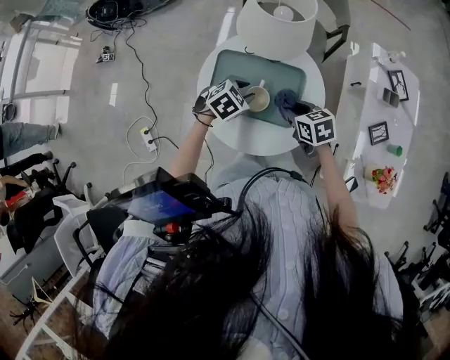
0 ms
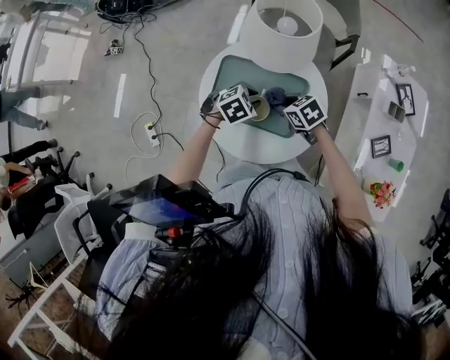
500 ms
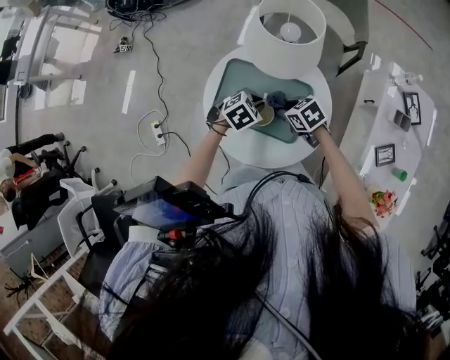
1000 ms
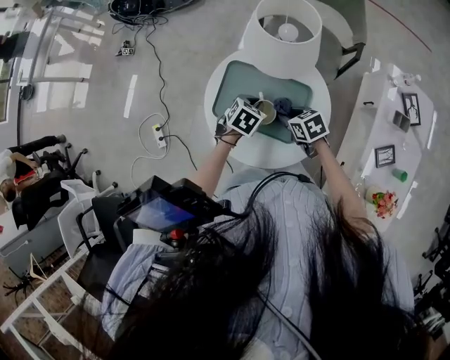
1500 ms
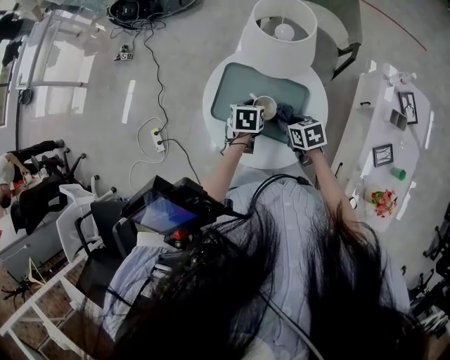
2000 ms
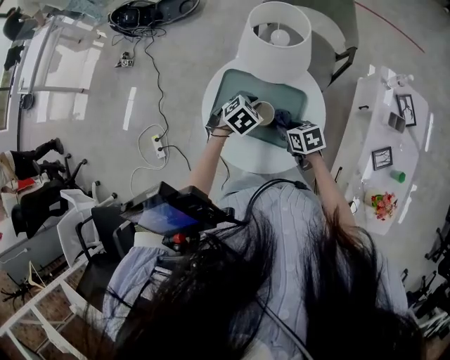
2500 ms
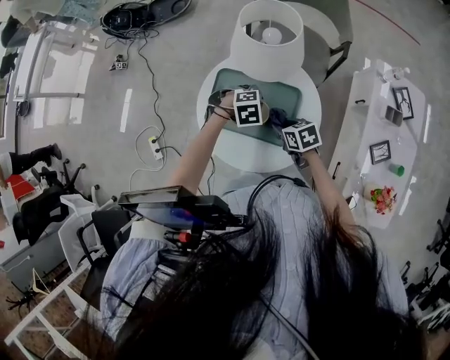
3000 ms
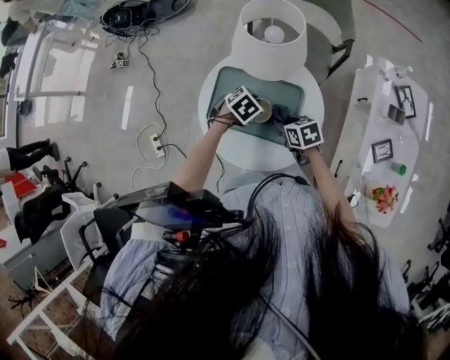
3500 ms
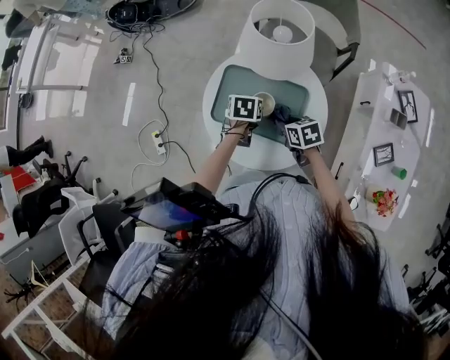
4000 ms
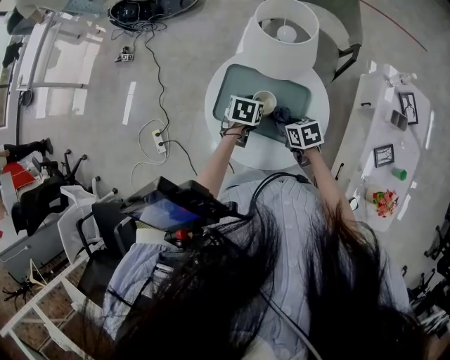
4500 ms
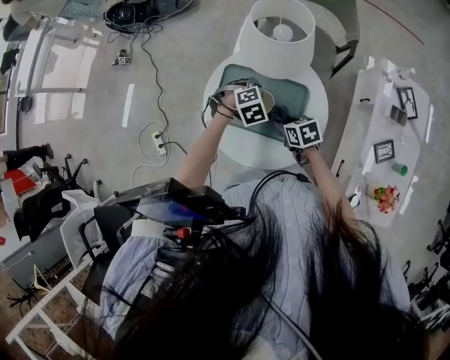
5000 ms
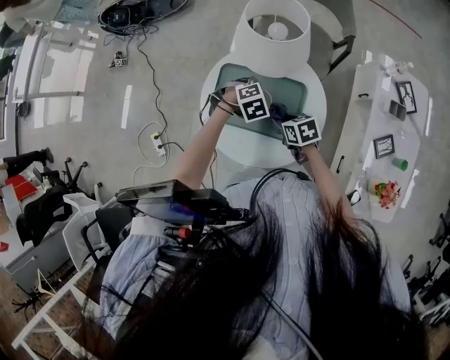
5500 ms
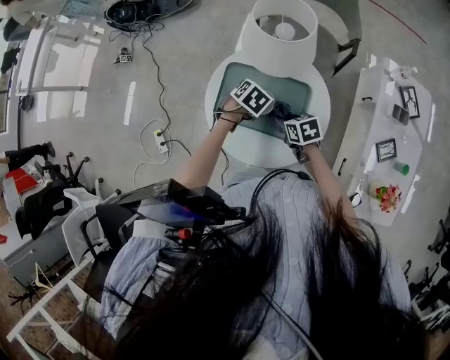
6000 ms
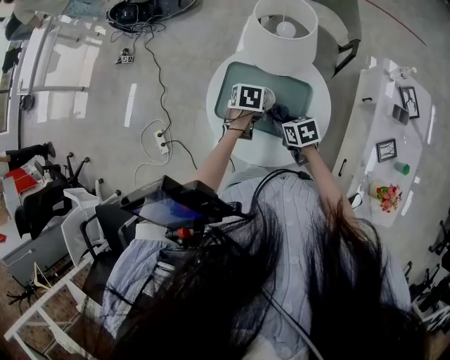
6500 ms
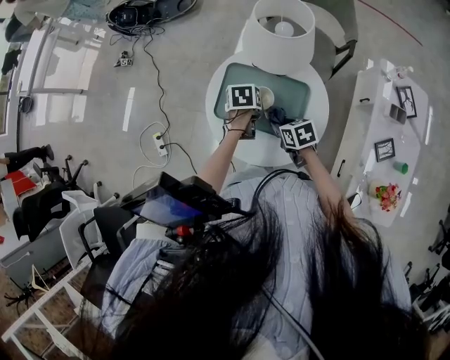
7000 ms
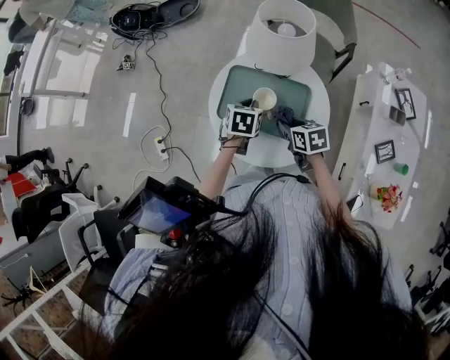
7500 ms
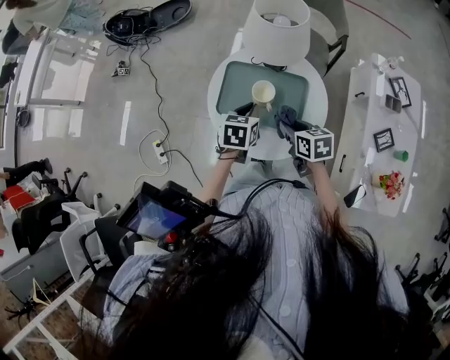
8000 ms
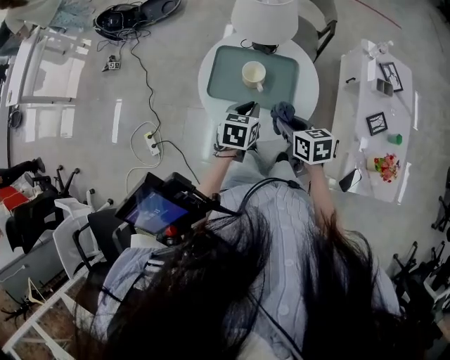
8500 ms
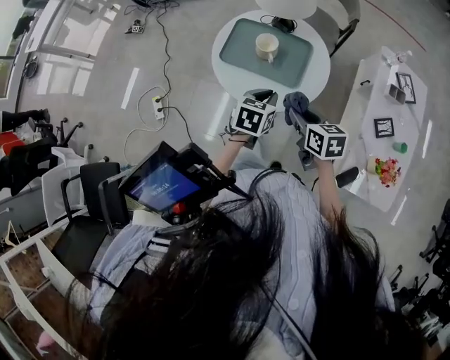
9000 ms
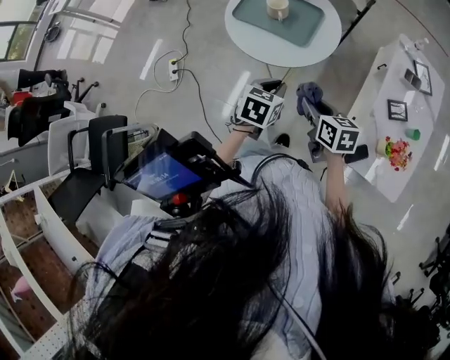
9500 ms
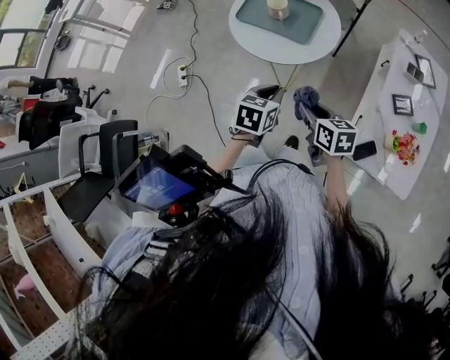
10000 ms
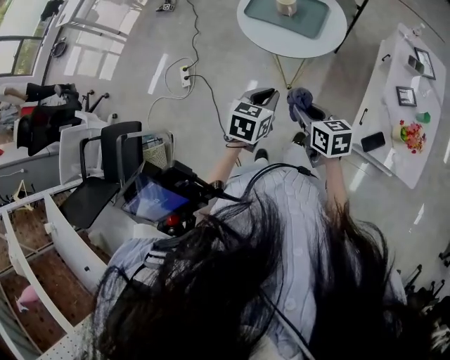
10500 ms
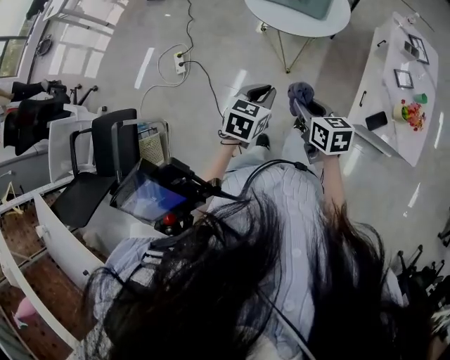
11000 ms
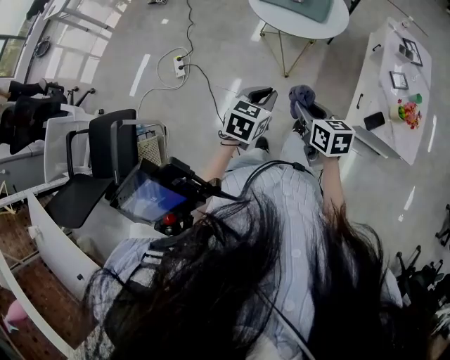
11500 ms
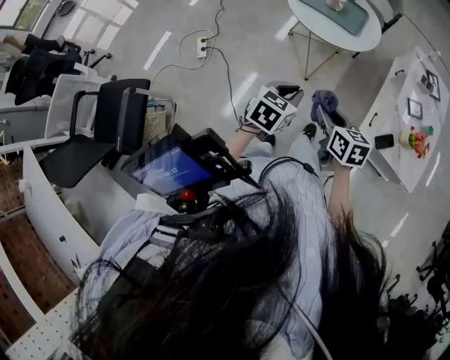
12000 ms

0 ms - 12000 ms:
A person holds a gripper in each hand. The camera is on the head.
0 ms - 2000 ms: The left gripper twists about 50 degrees counterclockwise, seen from behind.
4000 ms - 6000 ms: The left gripper turns by approximately 40 degrees.
6000 ms - 8000 ms: The left gripper heads upward, backward and to the left, covering some 15 cm, and swivels some 40 degrees. Meanwhile the right gripper shifts approximately 10 cm upward and backward.
8000 ms - 10000 ms: Both grippers travel together backward, approximately 30 cm.
10000 ms - 12000 ms: The grippers both shift backward and to the left by some 20 cm.

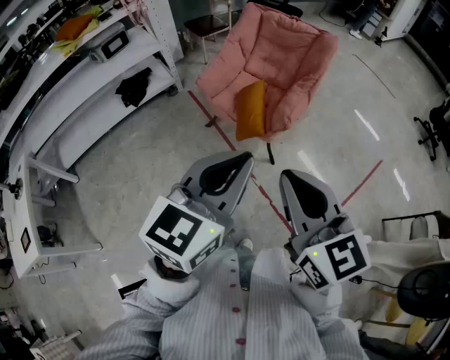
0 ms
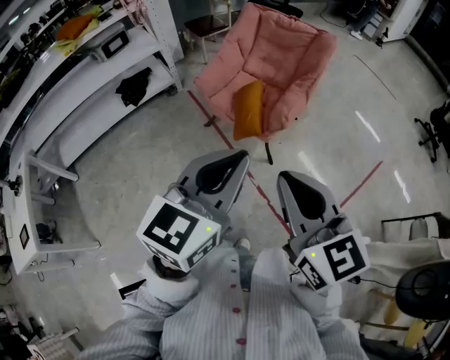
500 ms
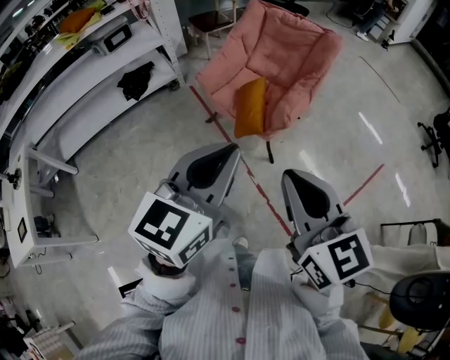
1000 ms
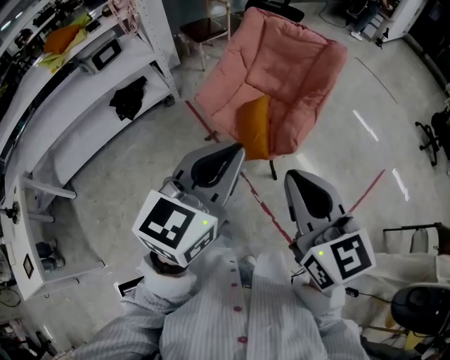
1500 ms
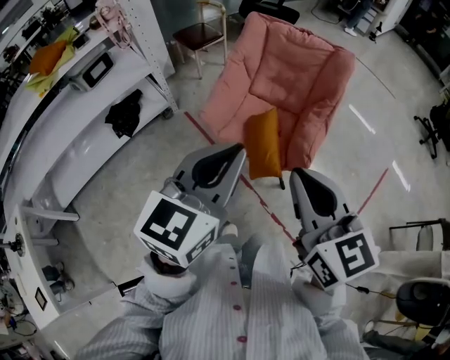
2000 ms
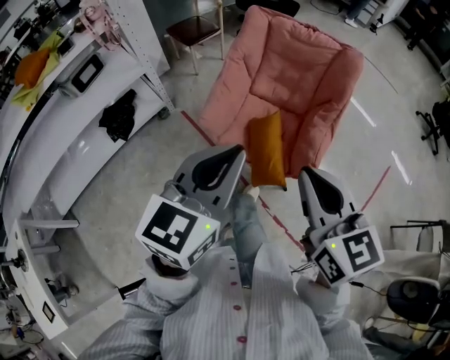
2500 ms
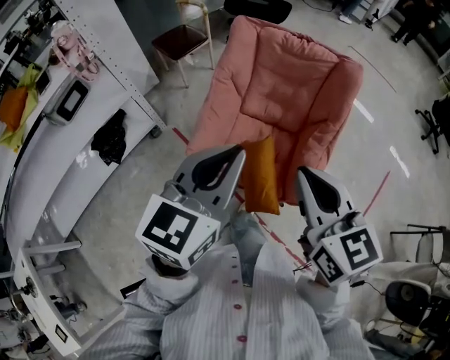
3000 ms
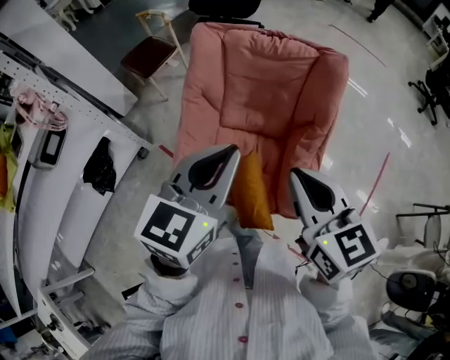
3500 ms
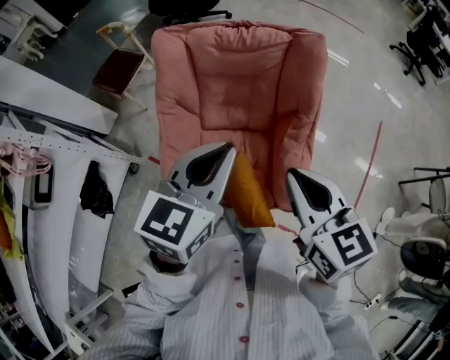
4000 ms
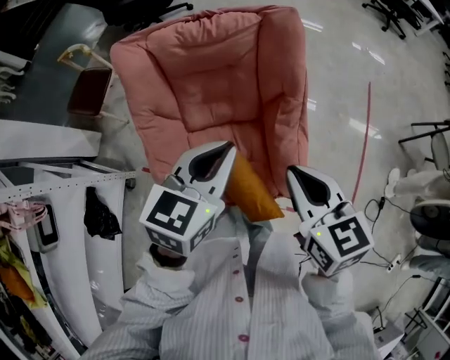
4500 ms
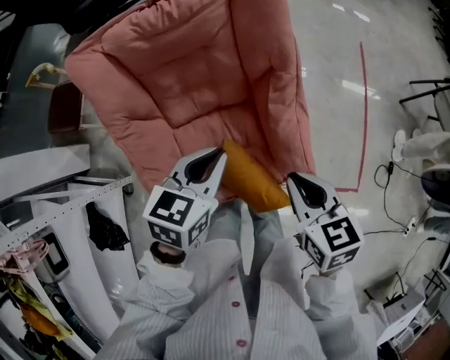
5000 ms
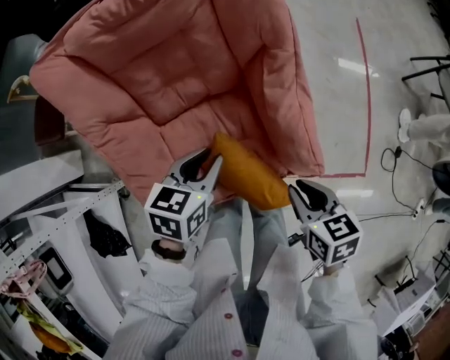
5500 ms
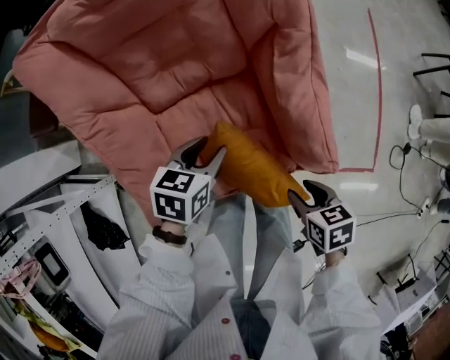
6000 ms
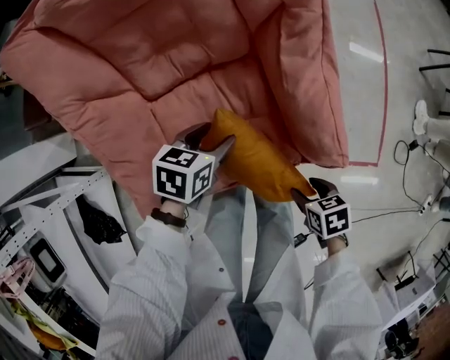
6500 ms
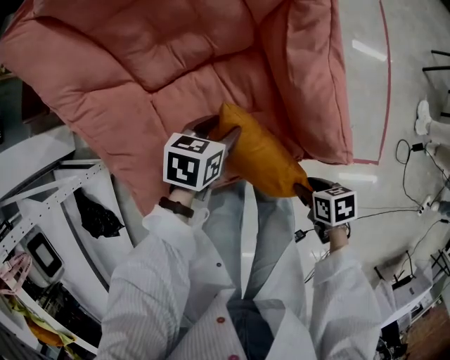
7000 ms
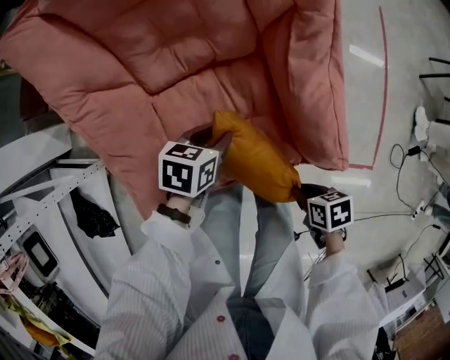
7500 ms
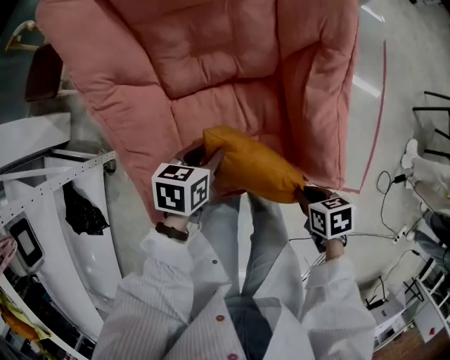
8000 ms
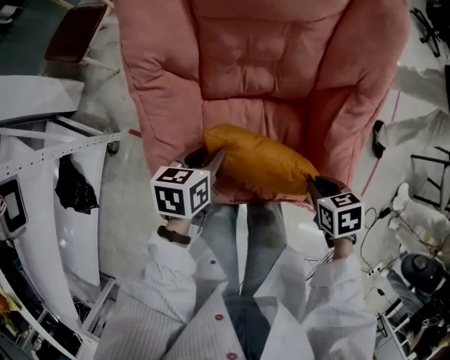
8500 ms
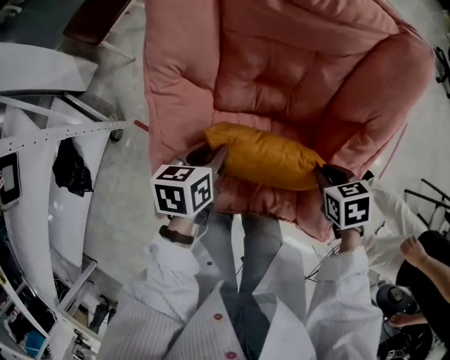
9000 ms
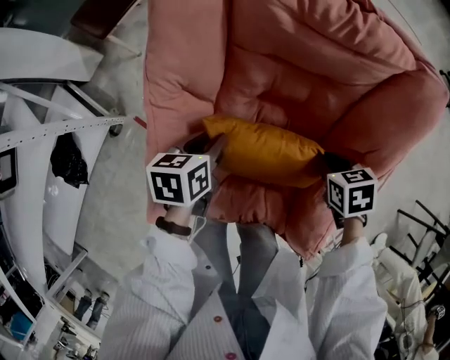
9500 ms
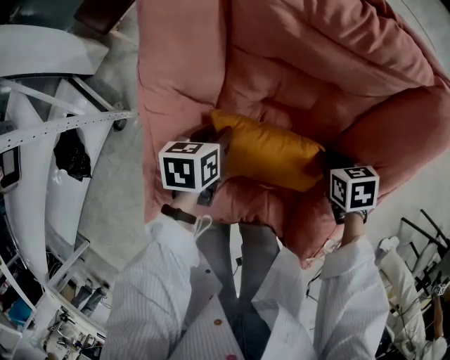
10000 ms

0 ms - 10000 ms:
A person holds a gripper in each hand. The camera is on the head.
0 ms - 2000 ms: The right gripper travels forward by roughly 25 cm, while the left gripper heads forward and to the left, covering approximately 30 cm.
2000 ms - 4000 ms: The two grippers go roughly 40 cm forward. The right gripper swivels some 20 degrees. Meanwhile the left gripper rotates approximately 20 degrees.
4000 ms - 6000 ms: The grippers both shift downward by about 40 cm. The right gripper tilts its fingers approximately 40 degrees downward, and opens. Meanwhile the left gripper points its fingers roughly 30 degrees further downward, and opens its fingers.
6000 ms - 8000 ms: The right gripper closes its fingers; the left gripper changes place by approximately 10 cm.
8000 ms - 10000 ms: The left gripper travels forward by roughly 20 cm, and turns by some 30 degrees; the right gripper is displaced forward by about 40 cm, and turns by approximately 30 degrees.

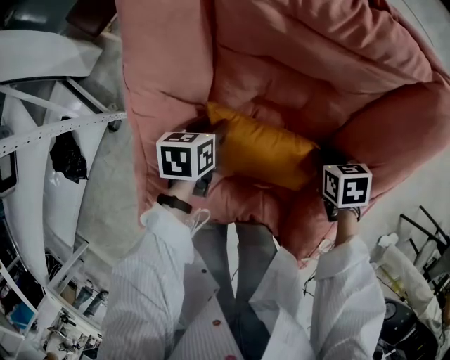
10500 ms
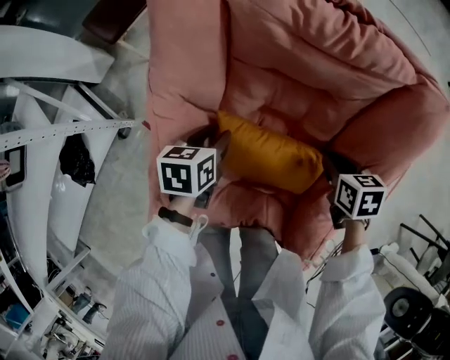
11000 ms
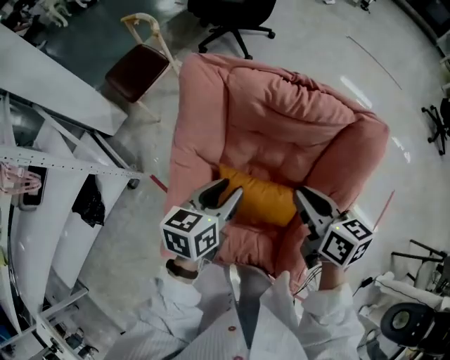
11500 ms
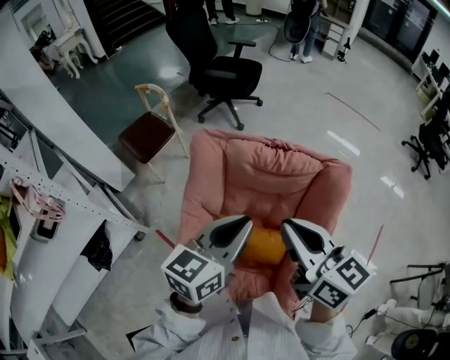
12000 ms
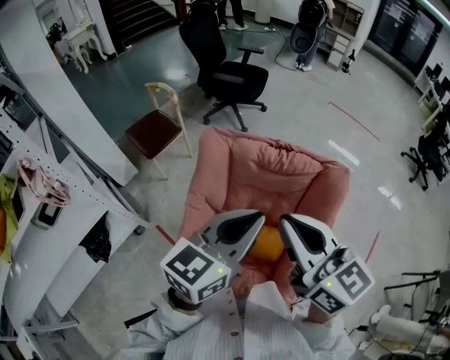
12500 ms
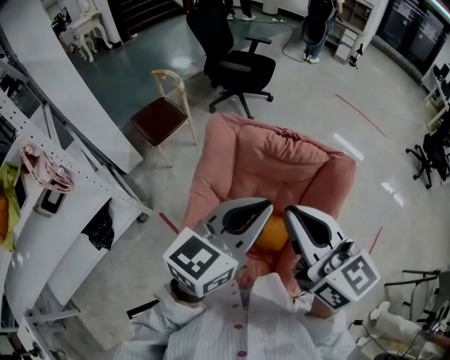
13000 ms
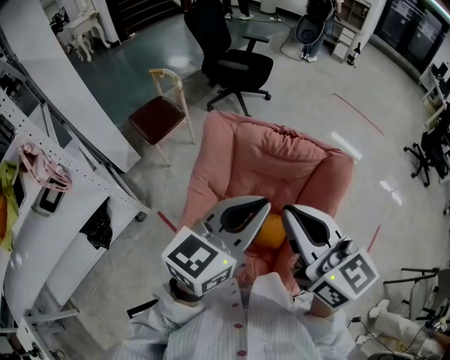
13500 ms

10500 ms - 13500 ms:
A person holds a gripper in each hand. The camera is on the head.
10500 ms - 12000 ms: Both grippers move upward, about 50 cm. The left gripper points its fingers about 40 degrees further upward, and closes up. The right gripper tips its fingers upward by roughly 60 degrees.
12000 ms - 13500 ms: Both grippers travel together upward and backward, roughly 10 cm.

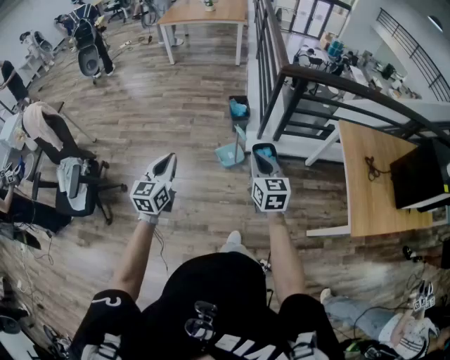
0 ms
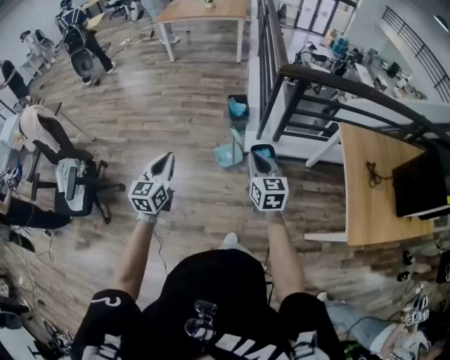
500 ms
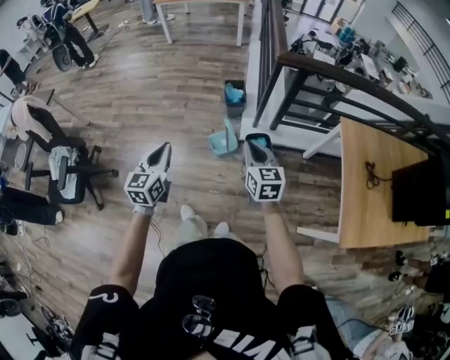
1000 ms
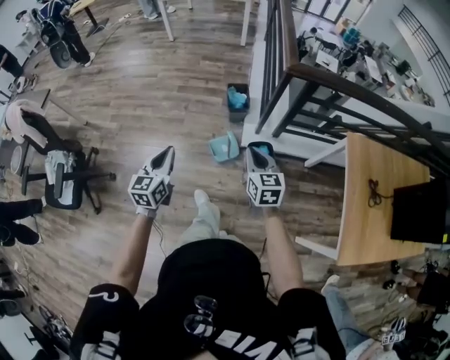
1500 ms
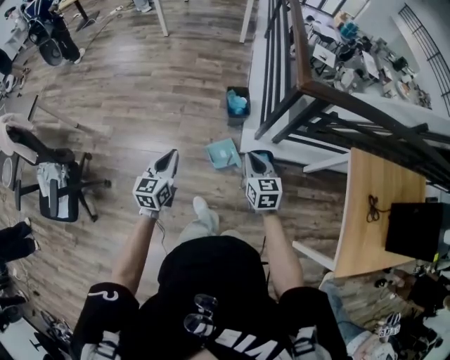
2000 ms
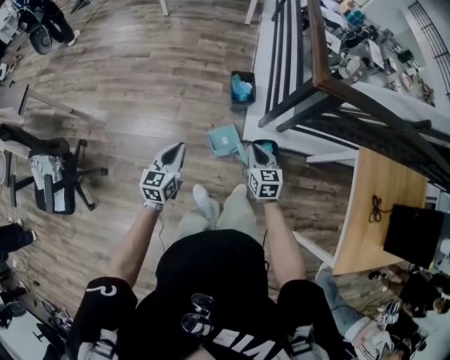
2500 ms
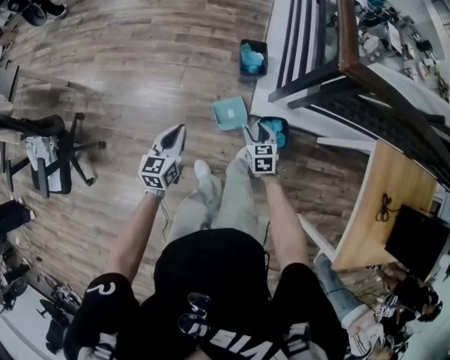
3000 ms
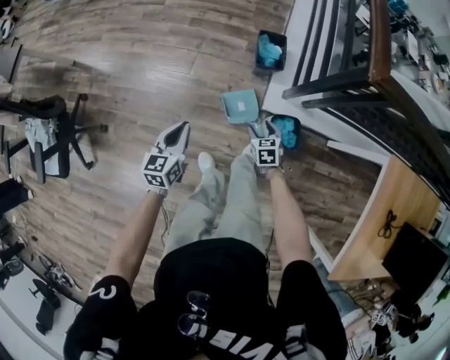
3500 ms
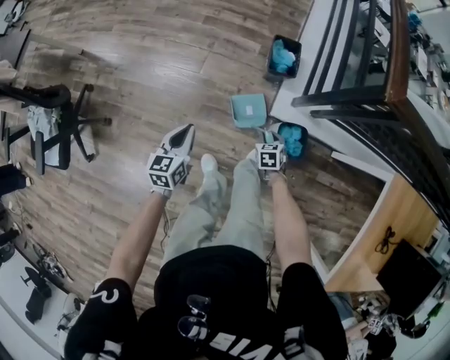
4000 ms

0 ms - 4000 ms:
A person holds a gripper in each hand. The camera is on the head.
0 ms - 2000 ms: Both grippers travel together forward, some 30 cm.
2000 ms - 4000 ms: The right gripper shifts some 40 cm downward, tips its fingers downward by approximately 40 degrees, and opens, then closes once more, while the left gripper heads downward, covering some 25 cm.
